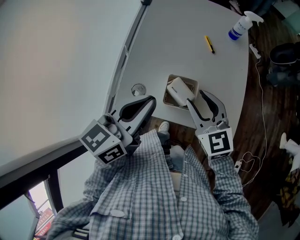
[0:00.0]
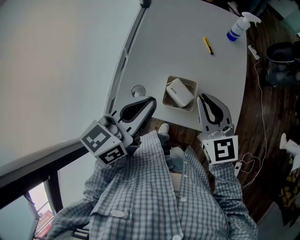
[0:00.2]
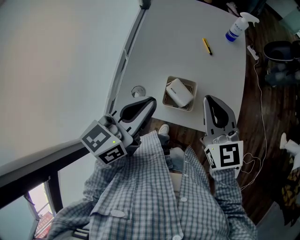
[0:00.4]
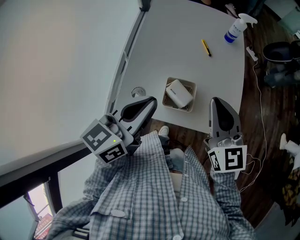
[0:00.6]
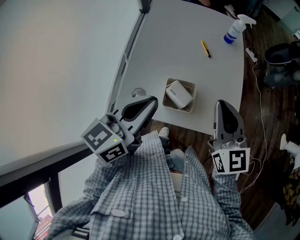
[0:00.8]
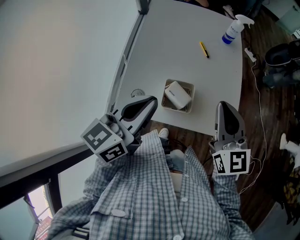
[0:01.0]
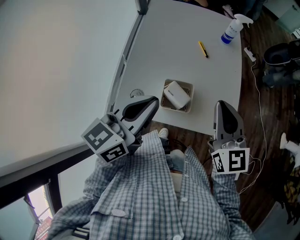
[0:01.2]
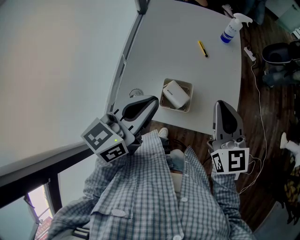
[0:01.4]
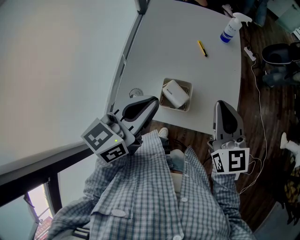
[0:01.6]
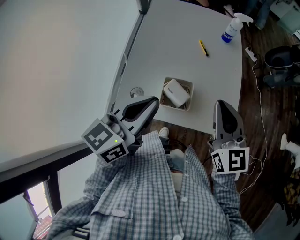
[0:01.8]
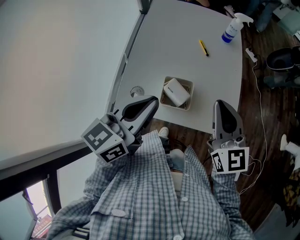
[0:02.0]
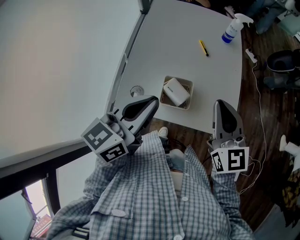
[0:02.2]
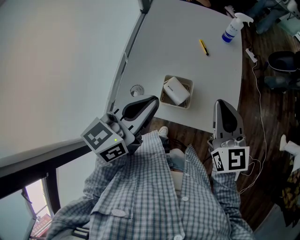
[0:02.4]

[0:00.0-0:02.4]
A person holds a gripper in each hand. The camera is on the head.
0:00.0 to 0:01.2: The right gripper travels to the right and upward by about 10 cm, swivels approximately 20 degrees, and closes its fingers.
0:01.2 to 0:02.4: The grippers move only a little.

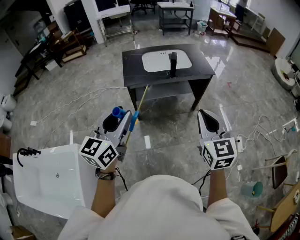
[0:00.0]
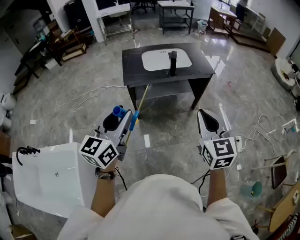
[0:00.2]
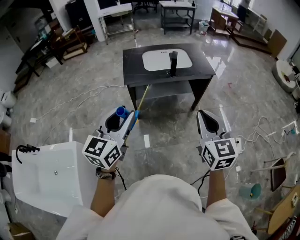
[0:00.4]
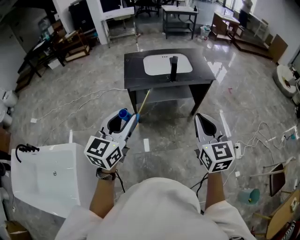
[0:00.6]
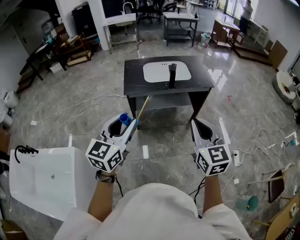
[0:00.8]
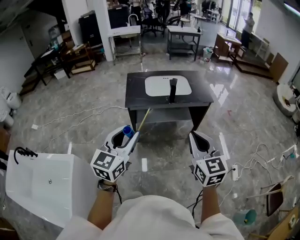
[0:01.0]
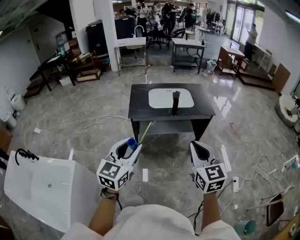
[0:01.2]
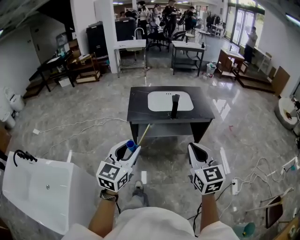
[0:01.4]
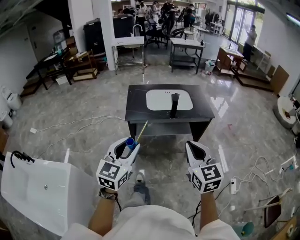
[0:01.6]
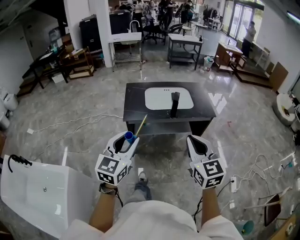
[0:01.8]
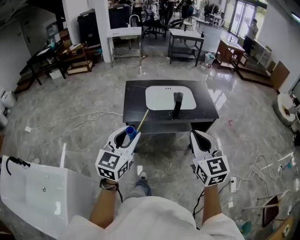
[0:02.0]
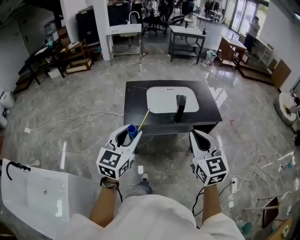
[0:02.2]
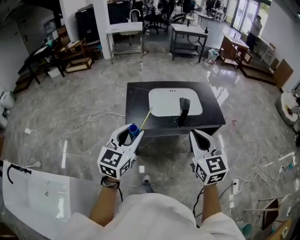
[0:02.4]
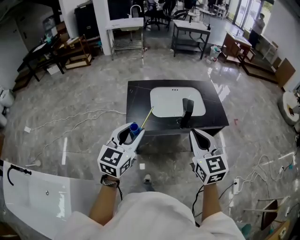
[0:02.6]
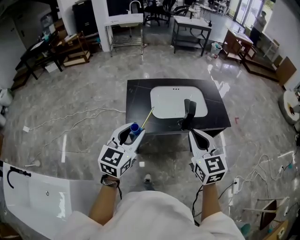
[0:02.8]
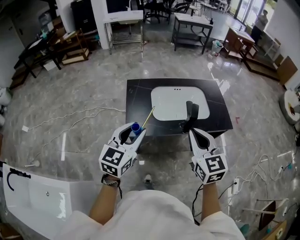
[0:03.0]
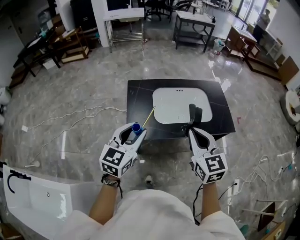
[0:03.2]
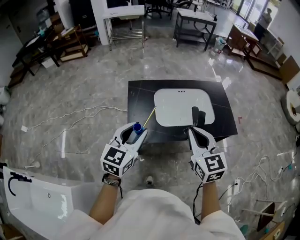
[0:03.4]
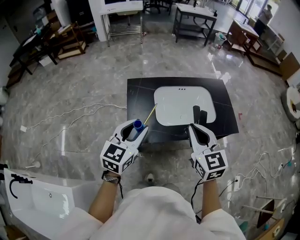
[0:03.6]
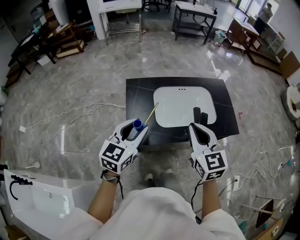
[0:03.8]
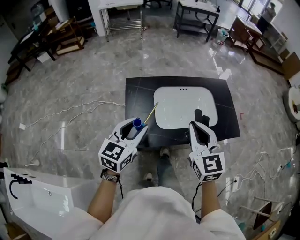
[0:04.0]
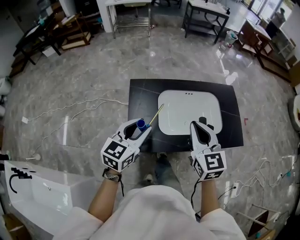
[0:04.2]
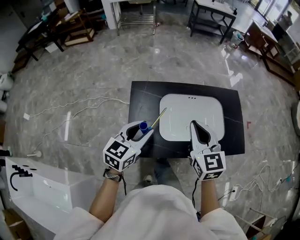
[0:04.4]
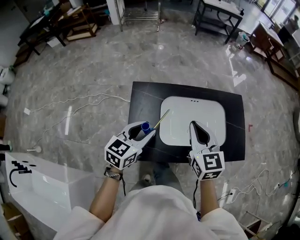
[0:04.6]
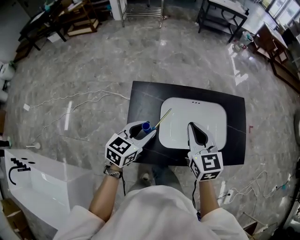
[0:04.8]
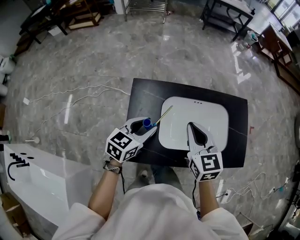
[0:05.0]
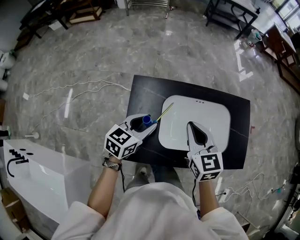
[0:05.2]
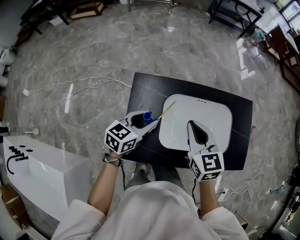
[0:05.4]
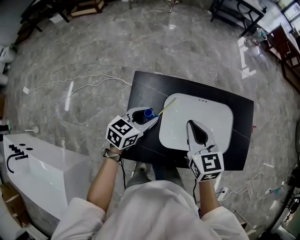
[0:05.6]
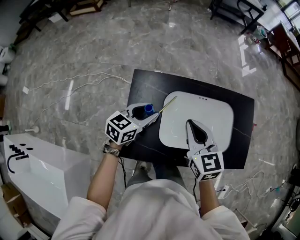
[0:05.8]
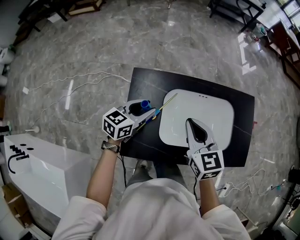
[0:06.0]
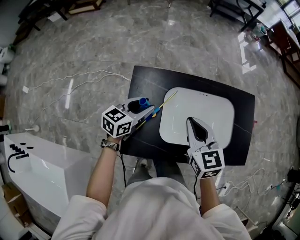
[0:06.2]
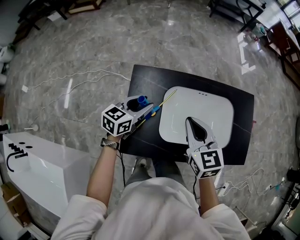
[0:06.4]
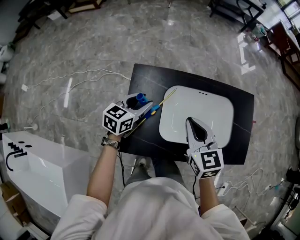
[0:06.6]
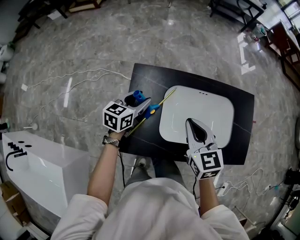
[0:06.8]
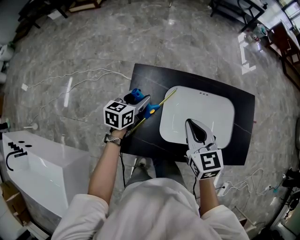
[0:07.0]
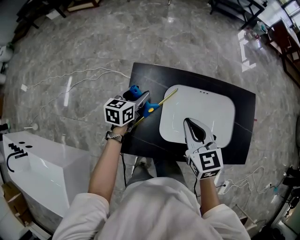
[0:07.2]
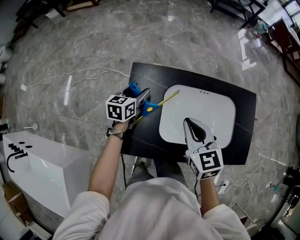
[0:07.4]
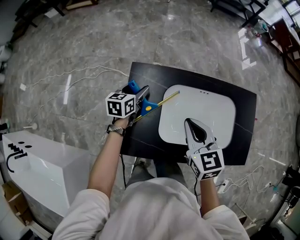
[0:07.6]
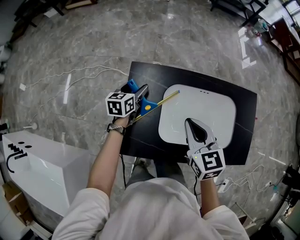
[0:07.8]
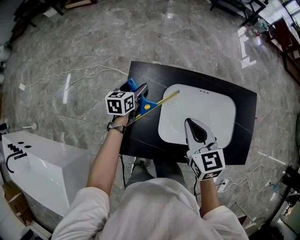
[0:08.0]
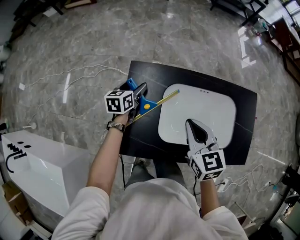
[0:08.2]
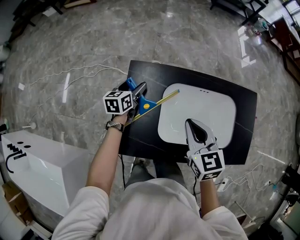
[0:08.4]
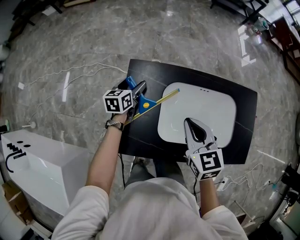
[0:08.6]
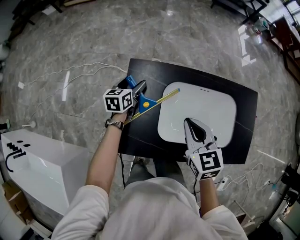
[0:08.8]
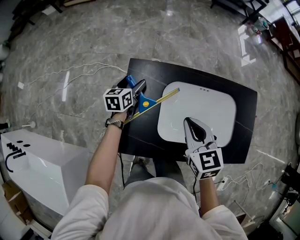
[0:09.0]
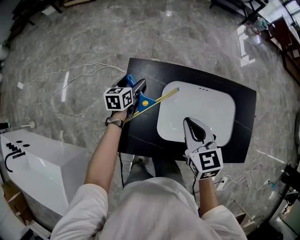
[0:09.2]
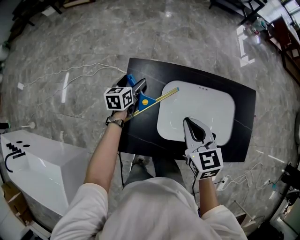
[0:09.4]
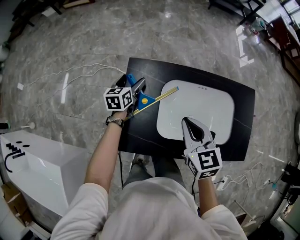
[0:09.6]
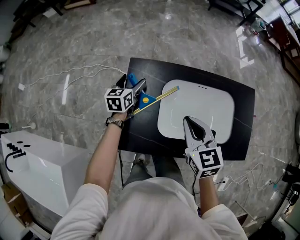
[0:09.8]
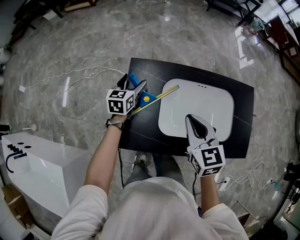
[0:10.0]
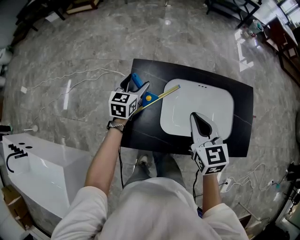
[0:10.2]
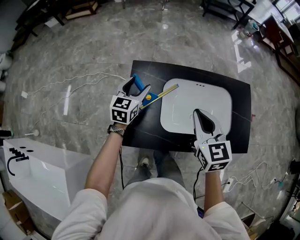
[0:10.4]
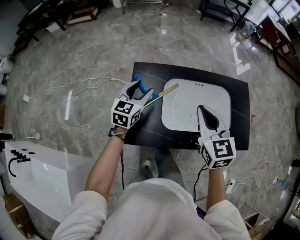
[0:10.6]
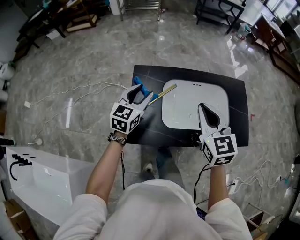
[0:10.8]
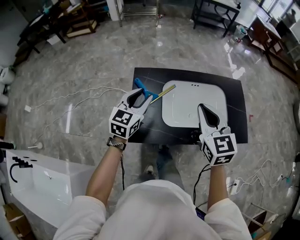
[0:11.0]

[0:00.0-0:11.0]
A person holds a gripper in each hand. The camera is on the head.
0:00.0 to 0:01.6: The left gripper moves to the right and forward, approximately 10 cm; the right gripper moves forward, roughly 5 cm.
0:01.6 to 0:03.2: Both grippers are carried forward, approximately 40 cm.
0:03.2 to 0:04.8: The right gripper shifts some 30 cm forward. The left gripper travels forward and downward by approximately 30 cm.
0:04.8 to 0:06.2: The left gripper goes roughly 10 cm forward and downward; the right gripper is displaced downward by approximately 5 cm.
0:06.2 to 0:07.8: The left gripper travels forward, downward and to the left by some 15 cm, changes its angle by some 30 degrees, and opens.
0:07.8 to 0:09.4: The grippers stay close to where they were, moving slightly.
0:09.4 to 0:11.0: The right gripper moves upward and backward, roughly 15 cm, while the left gripper goes roughly 30 cm upward and backward, turns by roughly 30 degrees, and closes up.

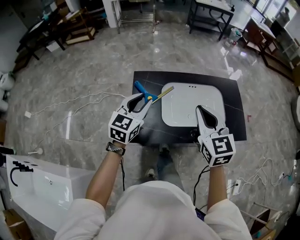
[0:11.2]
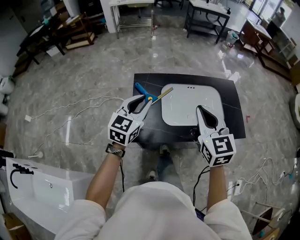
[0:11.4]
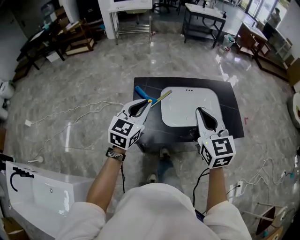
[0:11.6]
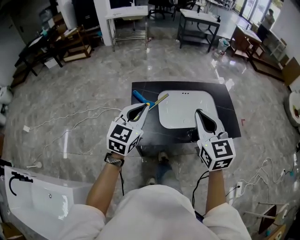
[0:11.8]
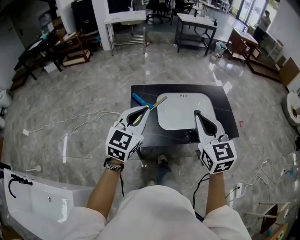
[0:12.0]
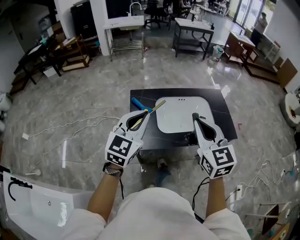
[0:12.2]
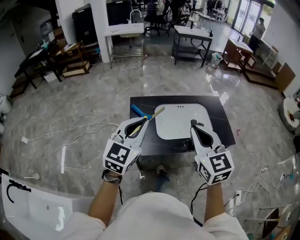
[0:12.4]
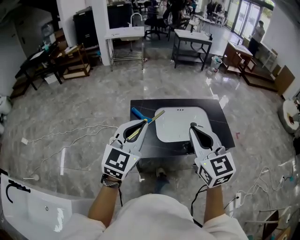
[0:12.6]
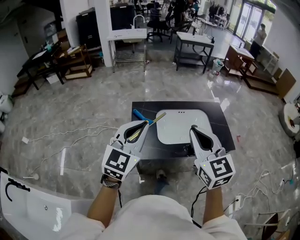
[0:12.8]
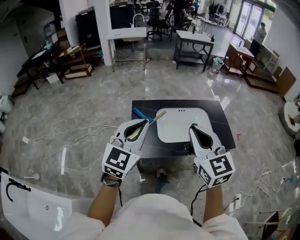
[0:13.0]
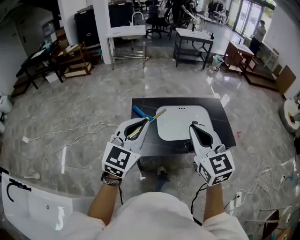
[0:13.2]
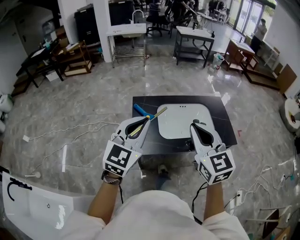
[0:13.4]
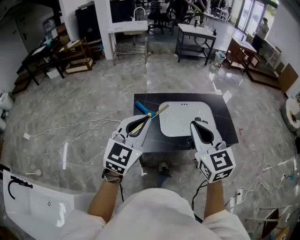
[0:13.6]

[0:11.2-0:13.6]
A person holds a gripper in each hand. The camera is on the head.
0:11.2 to 0:12.4: Both grippers move backward and upward, some 20 cm.
0:12.4 to 0:13.6: There are only small adjustments of the grippers.

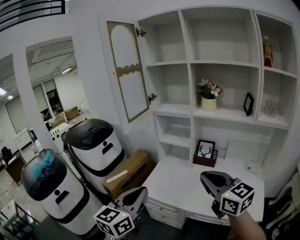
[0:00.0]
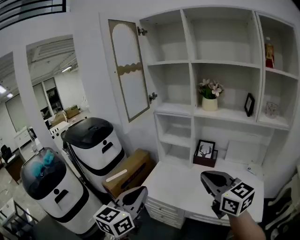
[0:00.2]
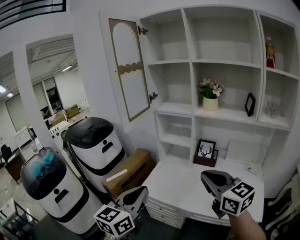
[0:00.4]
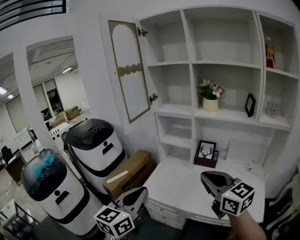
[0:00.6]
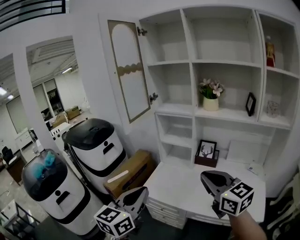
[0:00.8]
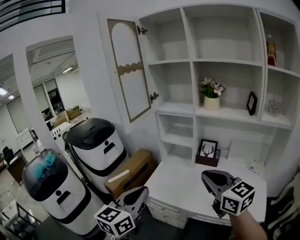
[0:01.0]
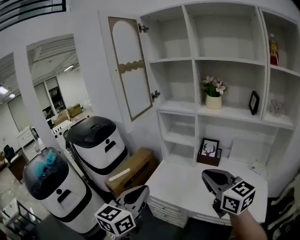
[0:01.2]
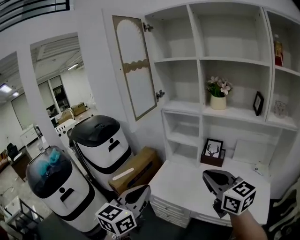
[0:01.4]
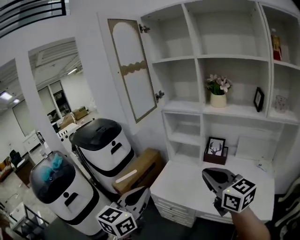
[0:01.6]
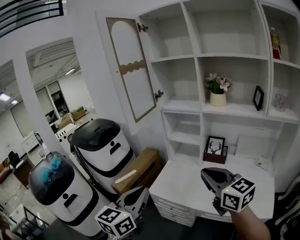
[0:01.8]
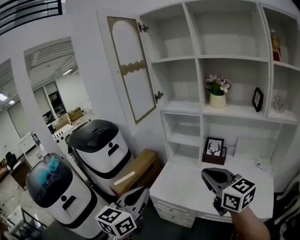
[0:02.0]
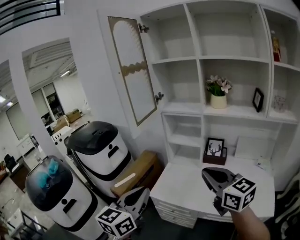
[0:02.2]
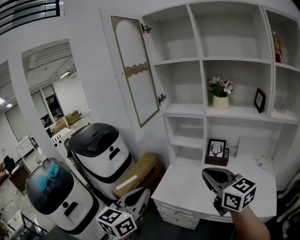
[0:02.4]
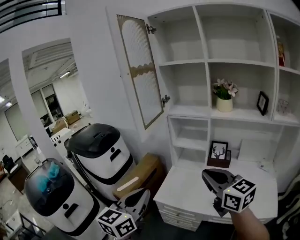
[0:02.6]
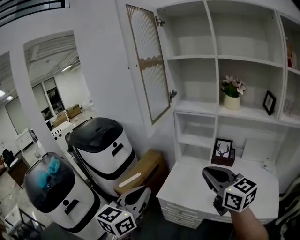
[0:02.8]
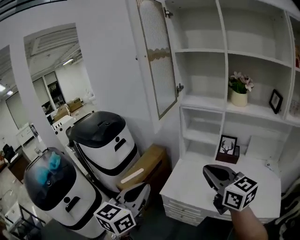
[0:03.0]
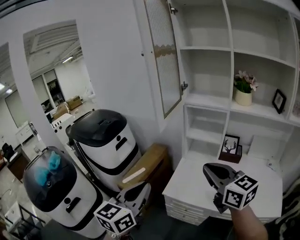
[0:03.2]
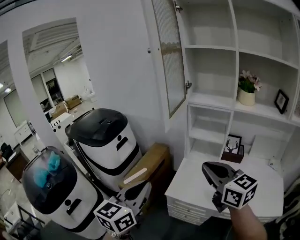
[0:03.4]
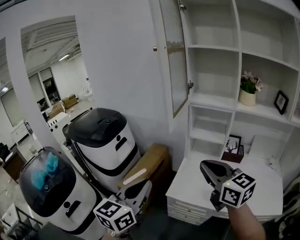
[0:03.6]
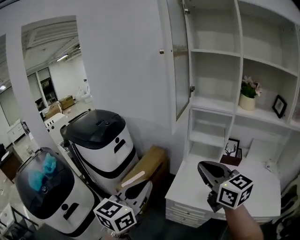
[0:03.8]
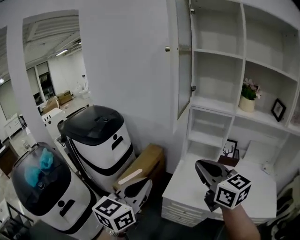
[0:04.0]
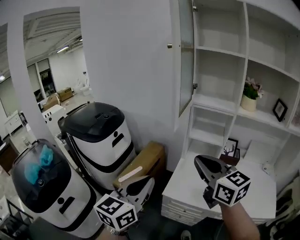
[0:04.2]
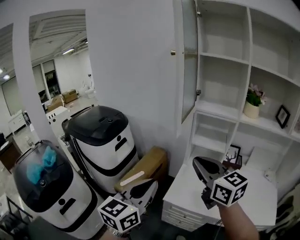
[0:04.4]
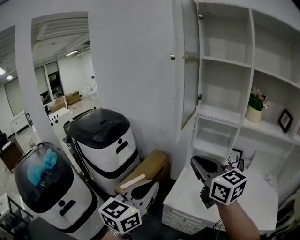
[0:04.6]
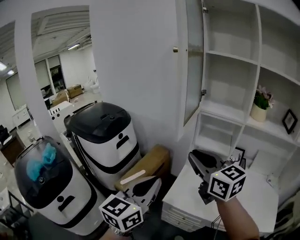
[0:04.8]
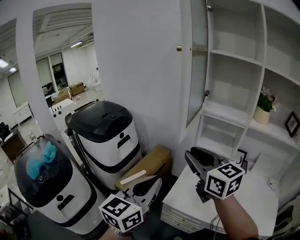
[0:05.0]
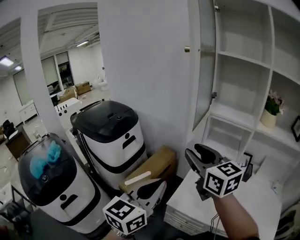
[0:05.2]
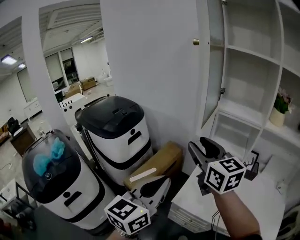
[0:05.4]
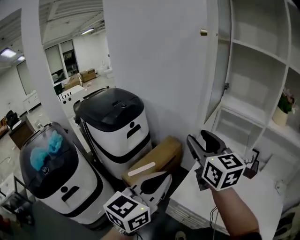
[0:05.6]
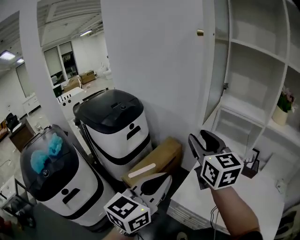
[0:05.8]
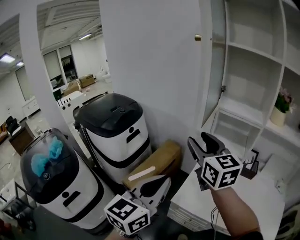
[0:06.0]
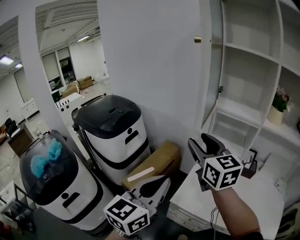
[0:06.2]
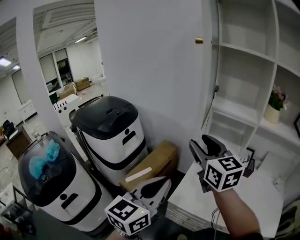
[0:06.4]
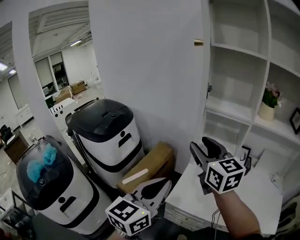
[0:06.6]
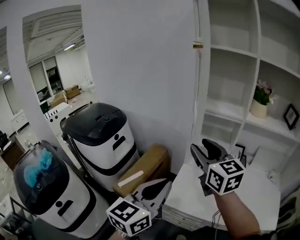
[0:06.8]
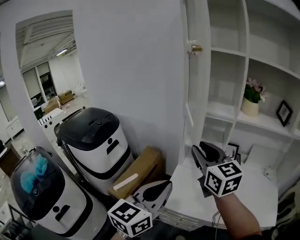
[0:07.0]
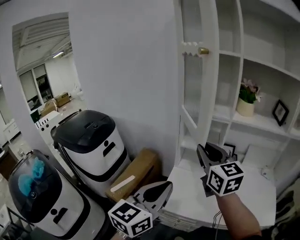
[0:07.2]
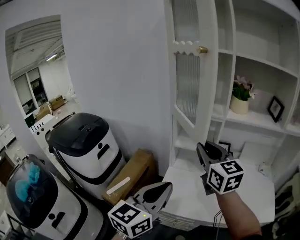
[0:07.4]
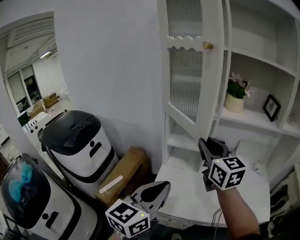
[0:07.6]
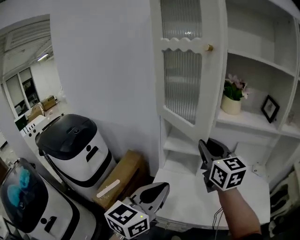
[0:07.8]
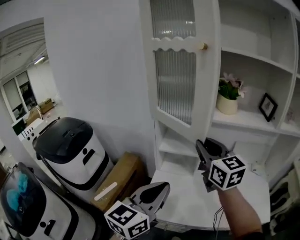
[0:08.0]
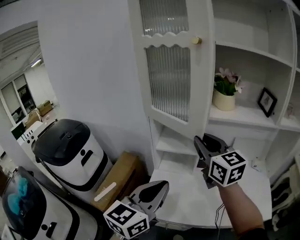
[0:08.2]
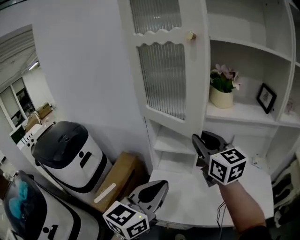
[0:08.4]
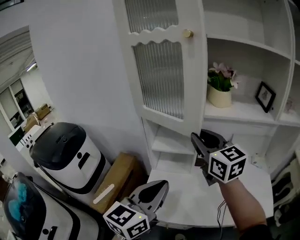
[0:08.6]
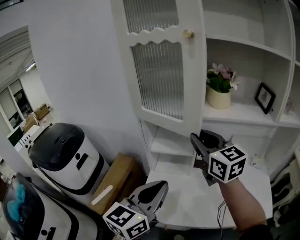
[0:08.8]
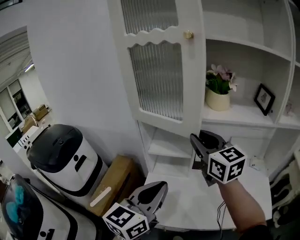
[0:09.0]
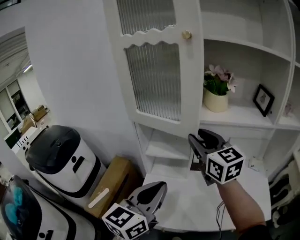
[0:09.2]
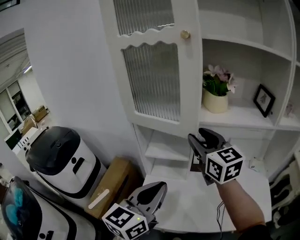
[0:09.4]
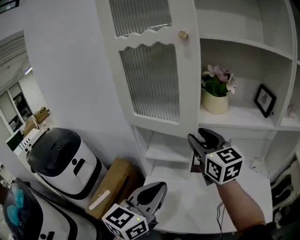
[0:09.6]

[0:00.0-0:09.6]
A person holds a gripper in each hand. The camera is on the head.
0:00.0 to 0:01.6: The grippers stay close to where they were, moving slightly.
0:01.6 to 0:03.2: Both grippers move to the left and forward, about 15 cm.
0:03.2 to 0:04.8: The left gripper goes roughly 5 cm forward. Meanwhile the right gripper heads to the left and forward, covering approximately 15 cm.
0:04.8 to 0:06.4: The right gripper goes roughly 10 cm forward, and opens up.
0:06.4 to 0:08.0: The left gripper moves to the right and forward, roughly 20 cm, while the right gripper travels to the right by about 25 cm, and closes its fingers.
0:08.0 to 0:09.6: Both grippers move forward and to the right, about 10 cm. The right gripper opens.
